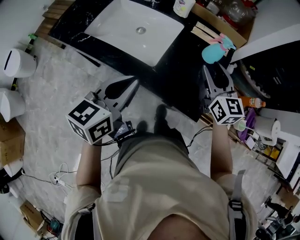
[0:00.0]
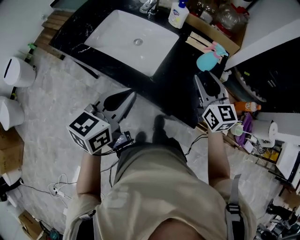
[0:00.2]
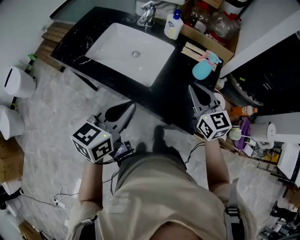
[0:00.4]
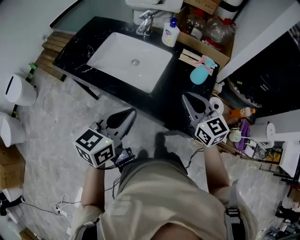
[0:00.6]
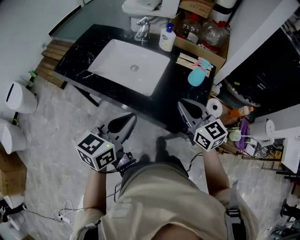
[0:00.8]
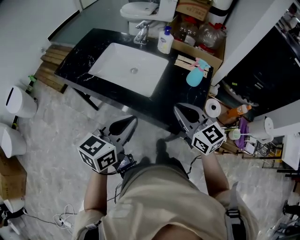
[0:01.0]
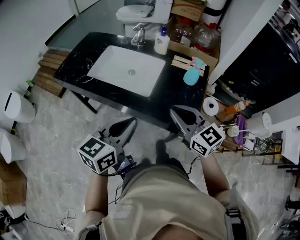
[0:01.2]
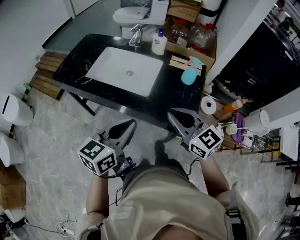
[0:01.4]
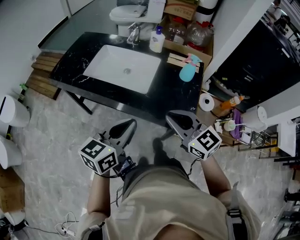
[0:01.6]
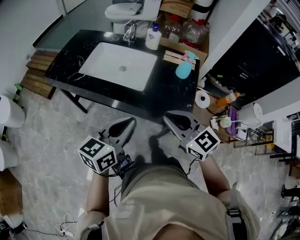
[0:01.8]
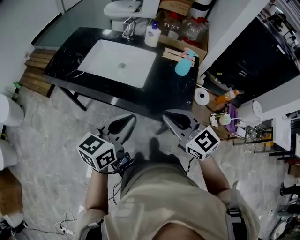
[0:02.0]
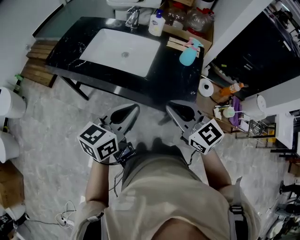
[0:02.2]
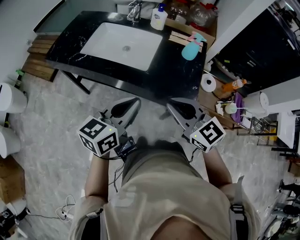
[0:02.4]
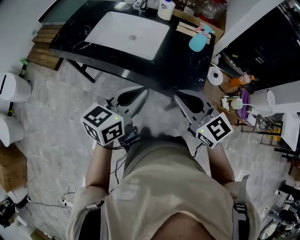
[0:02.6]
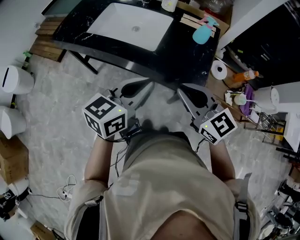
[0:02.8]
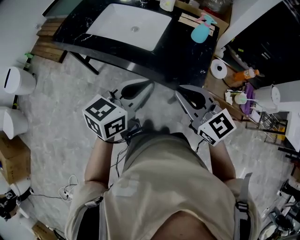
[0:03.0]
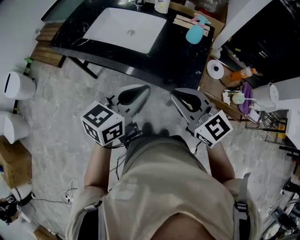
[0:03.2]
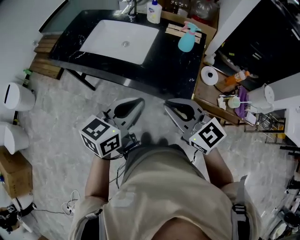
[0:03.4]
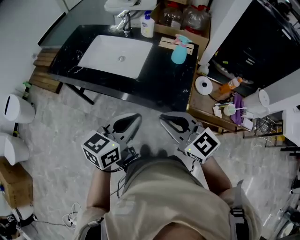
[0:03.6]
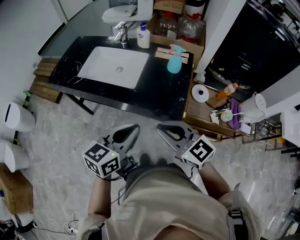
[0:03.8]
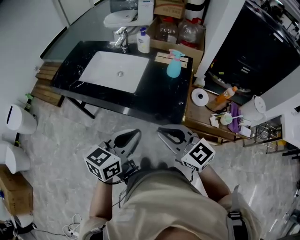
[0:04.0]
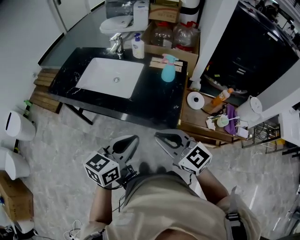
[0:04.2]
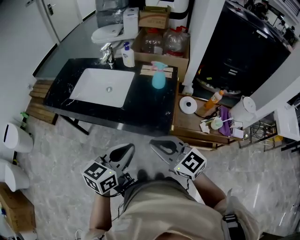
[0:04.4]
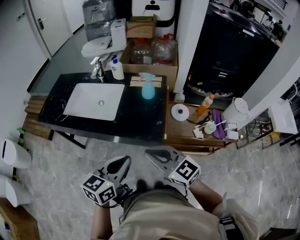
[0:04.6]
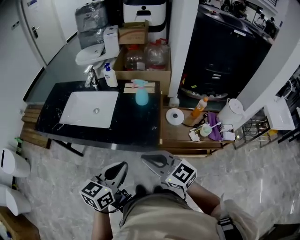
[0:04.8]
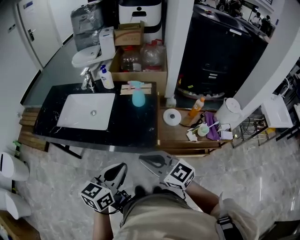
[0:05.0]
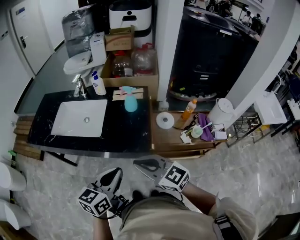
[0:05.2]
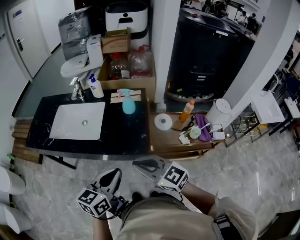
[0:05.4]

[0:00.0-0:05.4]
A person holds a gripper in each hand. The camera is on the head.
0:00.0 to 0:01.4: The left gripper shifts about 10 cm backward, while the right gripper heads backward and to the left, covering approximately 20 cm, and closes.
0:01.4 to 0:02.8: The right gripper travels backward by approximately 5 cm.
0:02.8 to 0:04.0: The left gripper shifts some 5 cm backward, while the right gripper ends up about 5 cm from where it was.
0:04.0 to 0:05.4: The grippers move only a little.

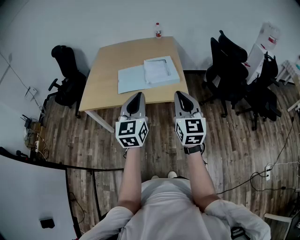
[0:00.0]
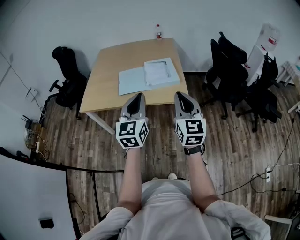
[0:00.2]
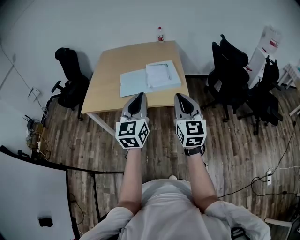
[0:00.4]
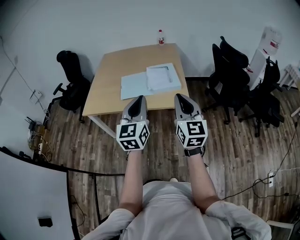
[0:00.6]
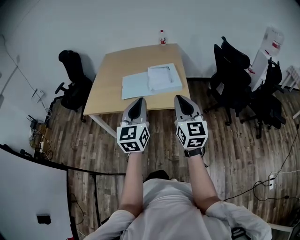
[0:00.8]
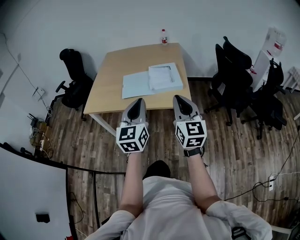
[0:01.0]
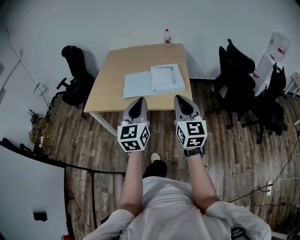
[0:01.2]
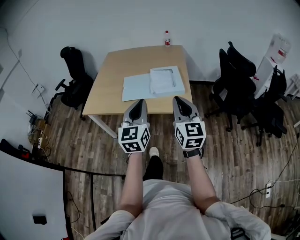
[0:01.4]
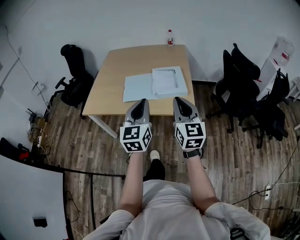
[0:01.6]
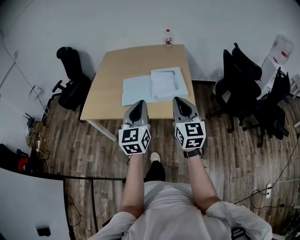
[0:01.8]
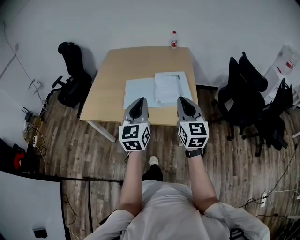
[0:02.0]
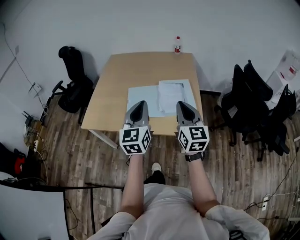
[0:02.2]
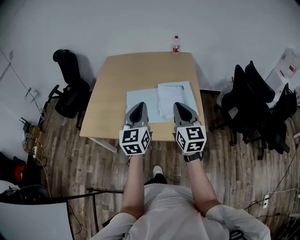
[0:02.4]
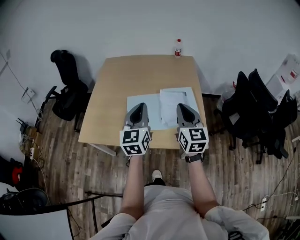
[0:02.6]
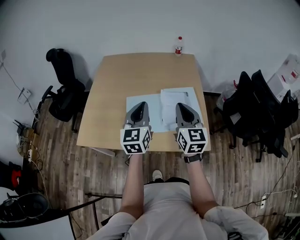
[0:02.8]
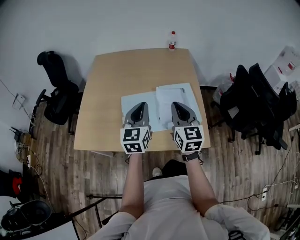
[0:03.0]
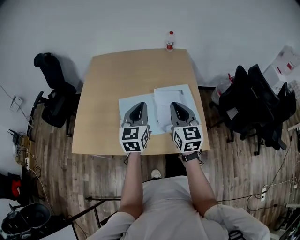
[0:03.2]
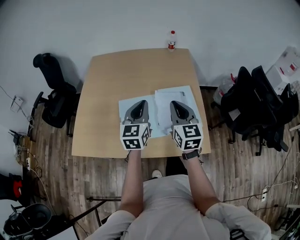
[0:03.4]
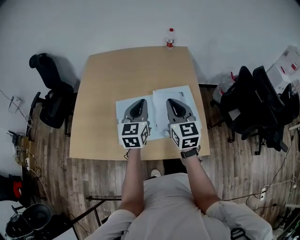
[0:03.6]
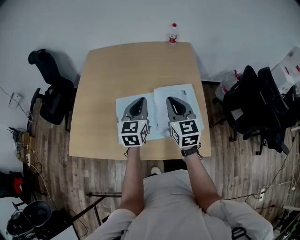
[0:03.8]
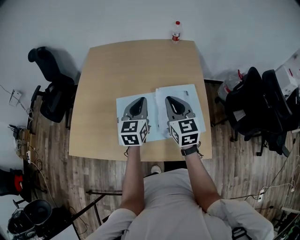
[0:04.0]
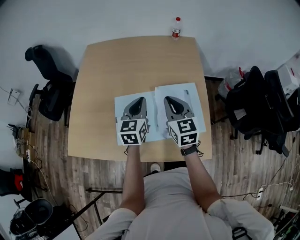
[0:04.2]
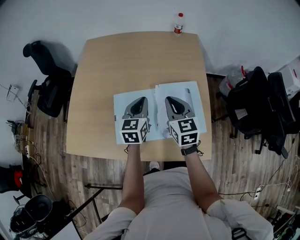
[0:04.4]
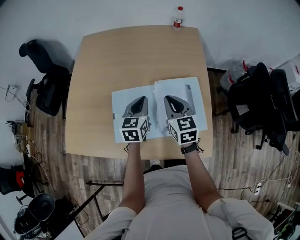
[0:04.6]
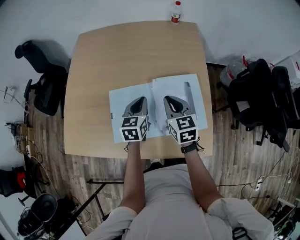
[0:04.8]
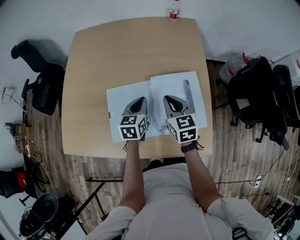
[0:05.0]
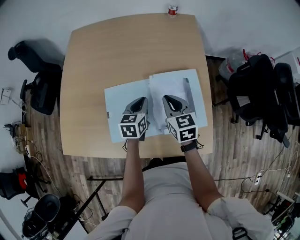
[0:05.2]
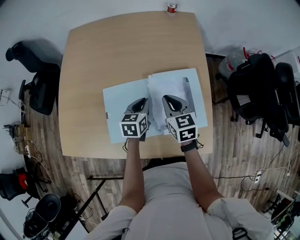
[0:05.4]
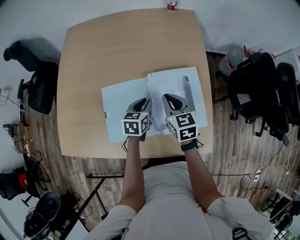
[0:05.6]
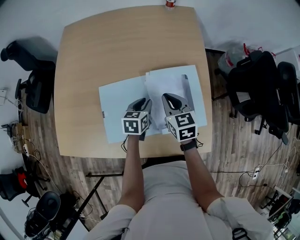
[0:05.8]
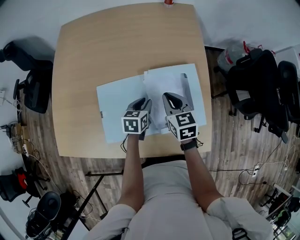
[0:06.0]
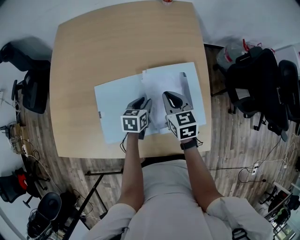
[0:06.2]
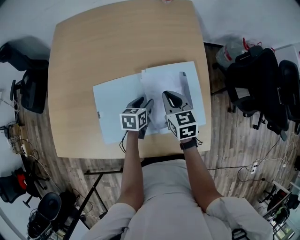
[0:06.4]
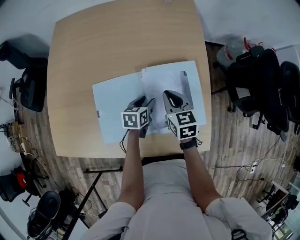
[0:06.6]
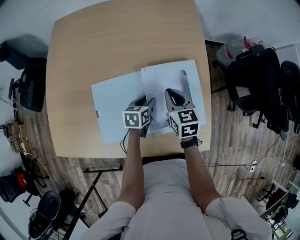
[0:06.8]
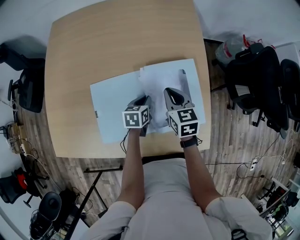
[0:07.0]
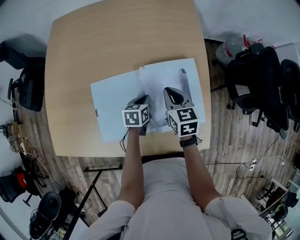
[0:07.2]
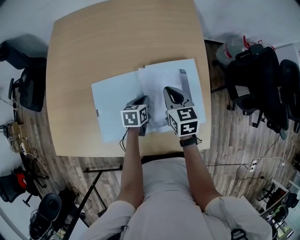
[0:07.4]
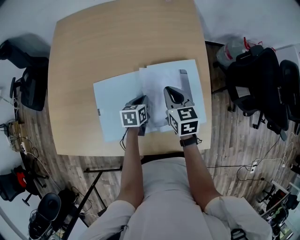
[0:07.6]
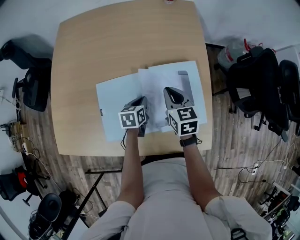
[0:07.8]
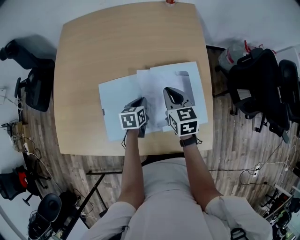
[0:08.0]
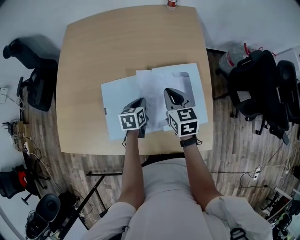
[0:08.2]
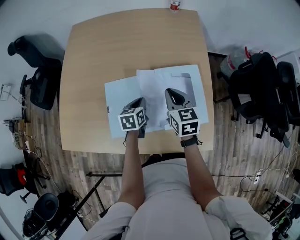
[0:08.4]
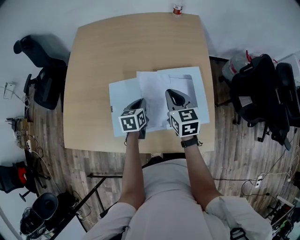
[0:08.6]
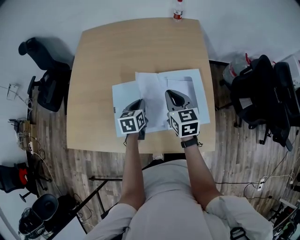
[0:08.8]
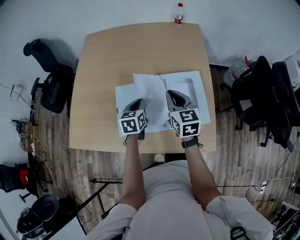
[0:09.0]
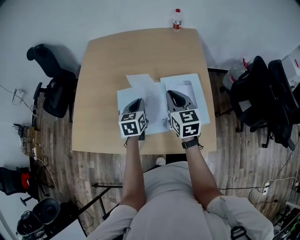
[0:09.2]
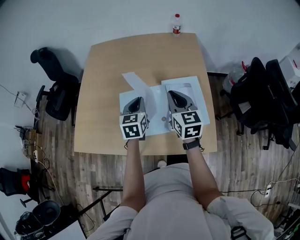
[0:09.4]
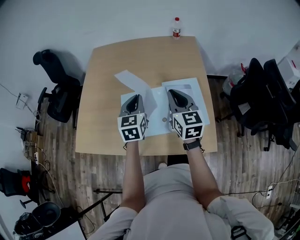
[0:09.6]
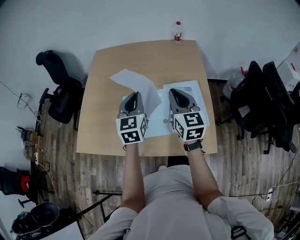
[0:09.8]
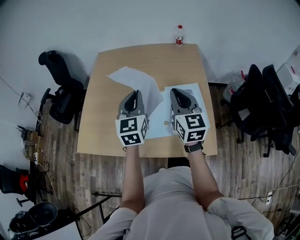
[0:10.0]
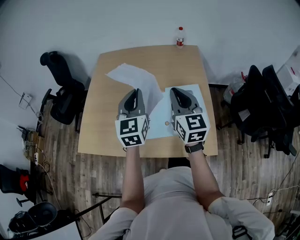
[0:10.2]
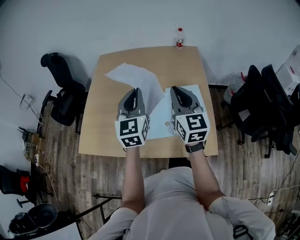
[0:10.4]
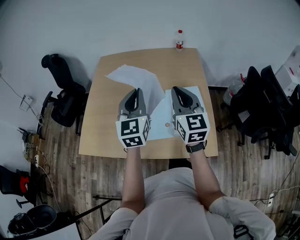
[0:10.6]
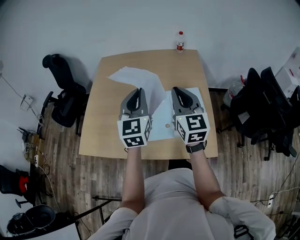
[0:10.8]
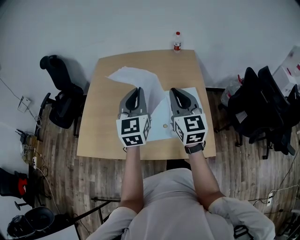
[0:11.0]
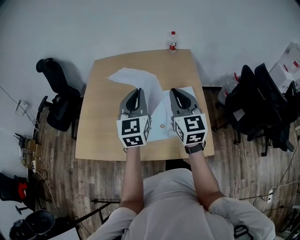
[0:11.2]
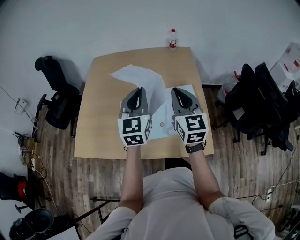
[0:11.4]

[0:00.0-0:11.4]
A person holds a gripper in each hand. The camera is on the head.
0:00.0 to 0:01.4: The right gripper moves forward, approximately 5 cm.
0:01.4 to 0:02.8: Both grippers move forward, about 30 cm.
0:02.8 to 0:04.2: The two grippers go approximately 20 cm forward and downward.
0:04.2 to 0:05.6: The grippers both shift downward by some 15 cm. The left gripper changes its angle by approximately 30 degrees.
0:05.6 to 0:07.2: The left gripper moves downward, about 10 cm, and opens, then closes once more, while the right gripper shifts by roughly 5 cm.
0:07.2 to 0:08.6: The left gripper goes roughly 10 cm upward and to the left, while the right gripper shifts approximately 5 cm upward.
0:08.6 to 0:10.0: The right gripper moves upward, about 20 cm, and changes its angle by some 20 degrees. Meanwhile the left gripper is displaced upward by about 30 cm, and tips its fingers upward by some 30 degrees.
0:10.0 to 0:11.4: The left gripper changes place by approximately 5 cm.

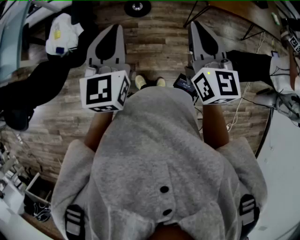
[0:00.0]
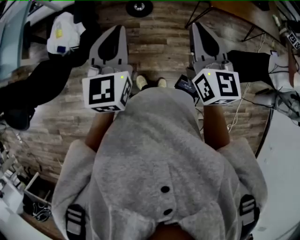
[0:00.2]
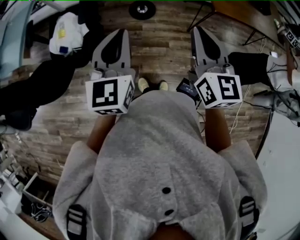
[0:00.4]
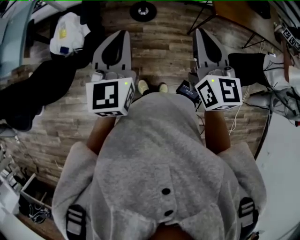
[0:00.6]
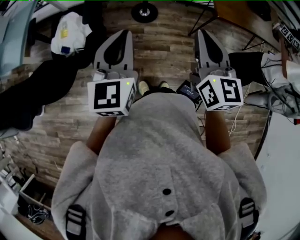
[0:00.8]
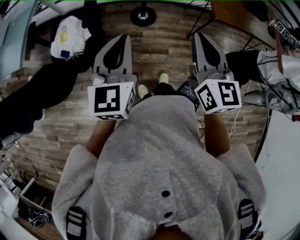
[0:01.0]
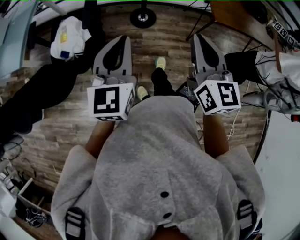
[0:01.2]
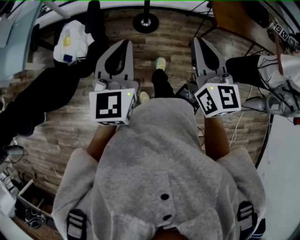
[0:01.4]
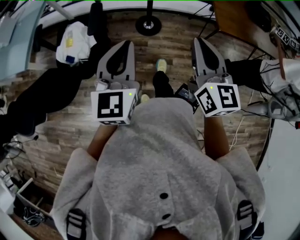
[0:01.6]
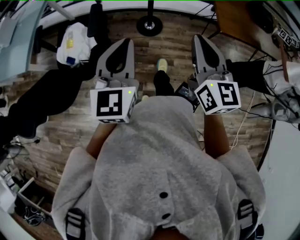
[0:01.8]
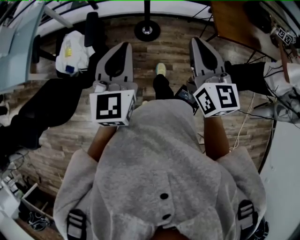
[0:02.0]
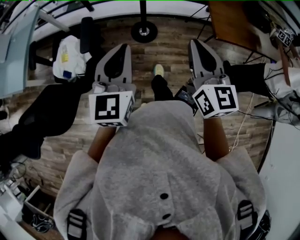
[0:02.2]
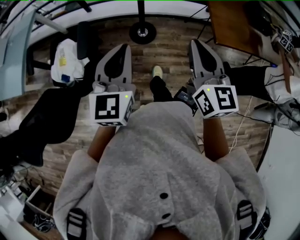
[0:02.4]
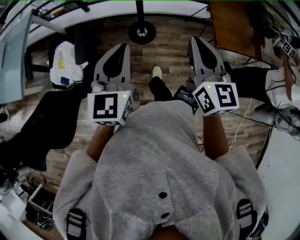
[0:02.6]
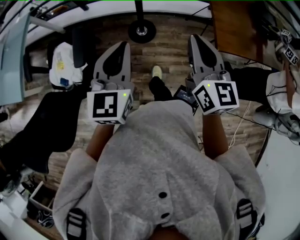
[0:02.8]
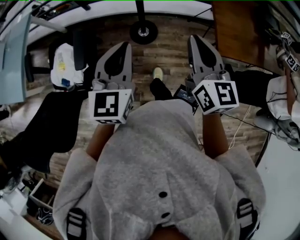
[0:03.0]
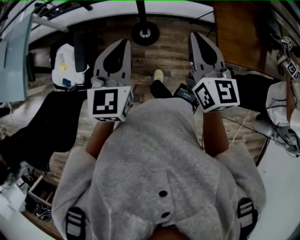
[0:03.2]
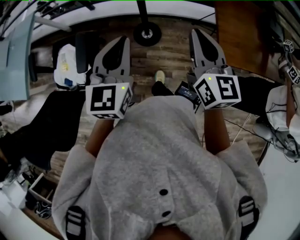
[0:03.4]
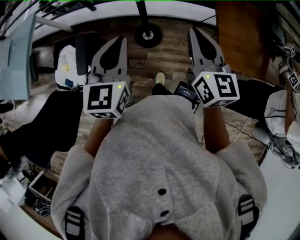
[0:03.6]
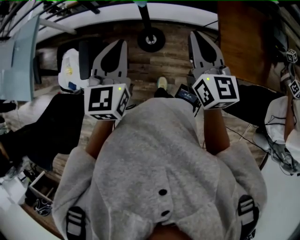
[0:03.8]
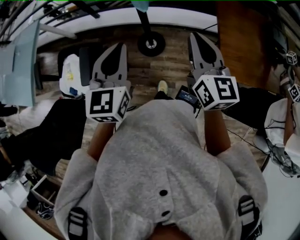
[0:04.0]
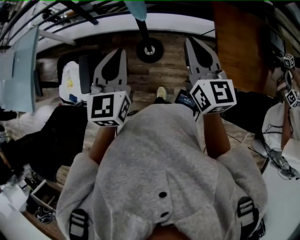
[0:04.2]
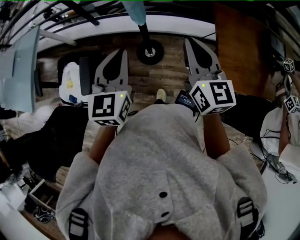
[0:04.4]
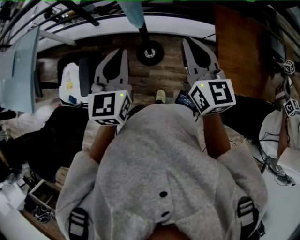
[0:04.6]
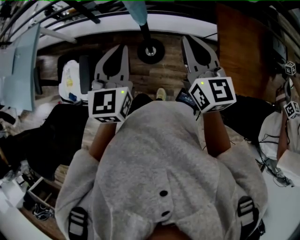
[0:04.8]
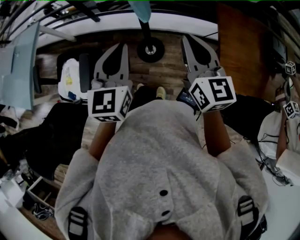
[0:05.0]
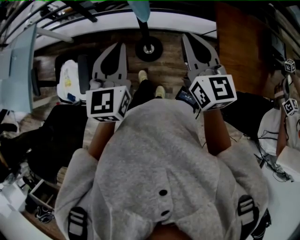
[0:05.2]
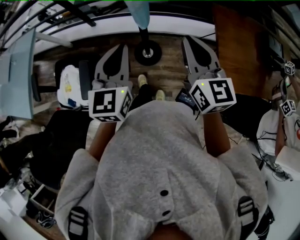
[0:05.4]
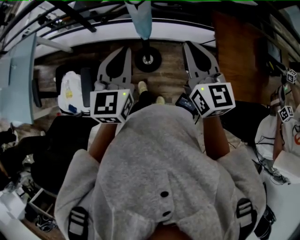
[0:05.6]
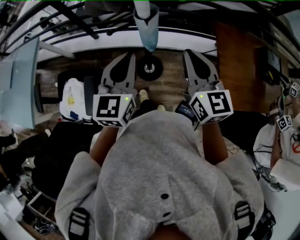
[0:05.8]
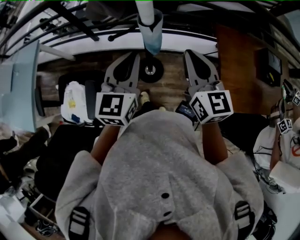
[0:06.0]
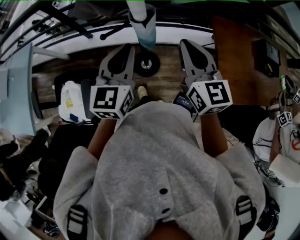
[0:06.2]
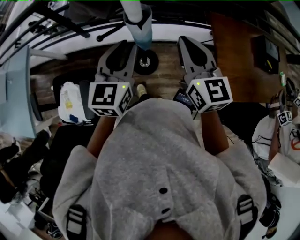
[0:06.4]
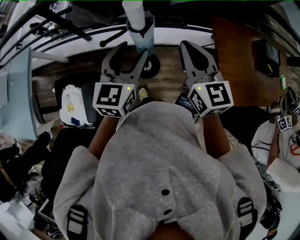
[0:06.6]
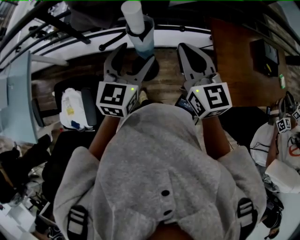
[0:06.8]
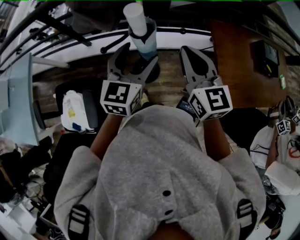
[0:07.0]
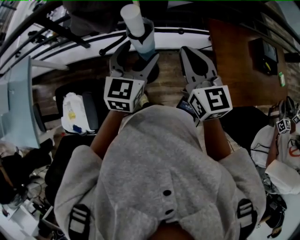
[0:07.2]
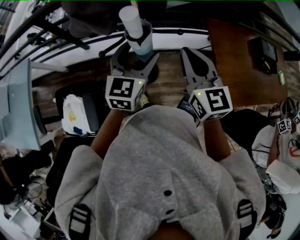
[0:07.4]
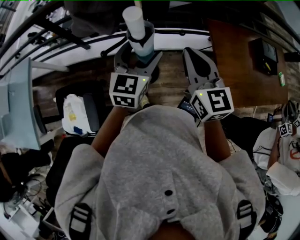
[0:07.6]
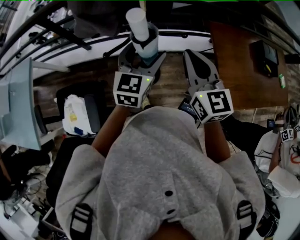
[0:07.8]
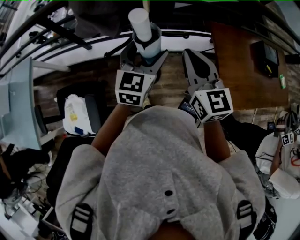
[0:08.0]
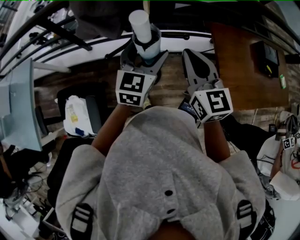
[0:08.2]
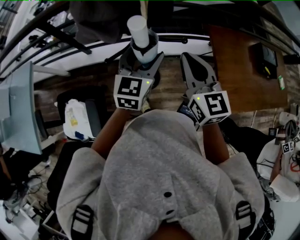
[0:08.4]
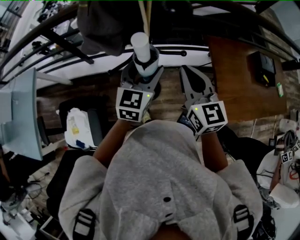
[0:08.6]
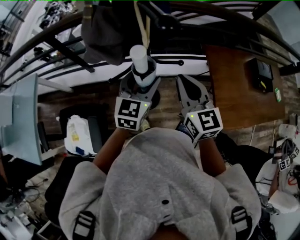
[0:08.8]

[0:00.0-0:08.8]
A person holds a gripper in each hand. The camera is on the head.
0:00.0 to 0:01.4: Both grippers move to the left, approximately 5 cm.
0:01.4 to 0:03.0: Both grippers travel together forward, some 30 cm.
0:03.0 to 0:04.4: The two grippers go approximately 15 cm forward.
0:04.4 to 0:05.8: Both grippers move forward, roughly 10 cm.
0:05.8 to 0:07.4: The left gripper moves forward and to the right, some 10 cm, and opens its fingers. The right gripper moves forward, about 5 cm.
0:07.4 to 0:08.8: The grippers stay close to where they were, moving slightly.
